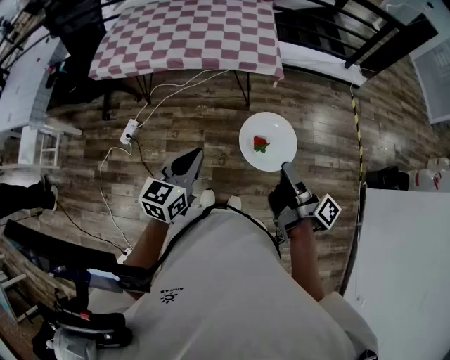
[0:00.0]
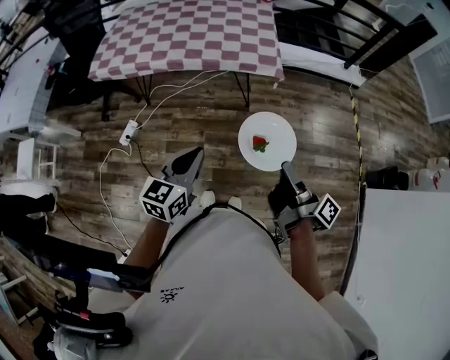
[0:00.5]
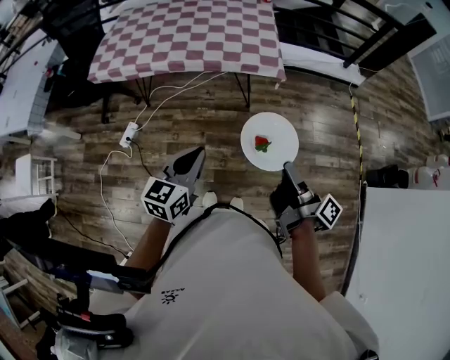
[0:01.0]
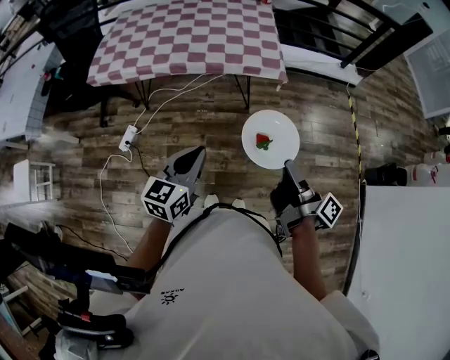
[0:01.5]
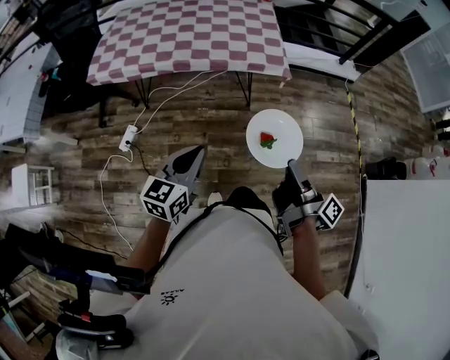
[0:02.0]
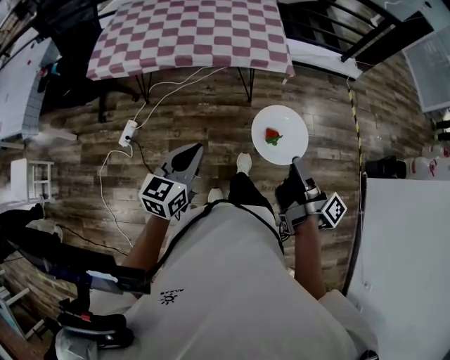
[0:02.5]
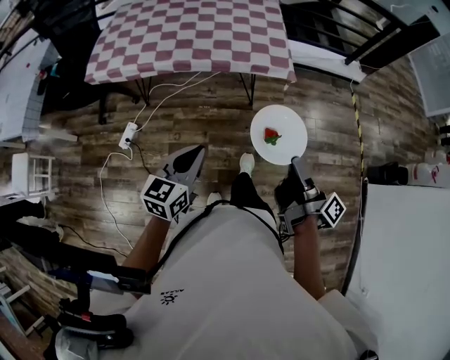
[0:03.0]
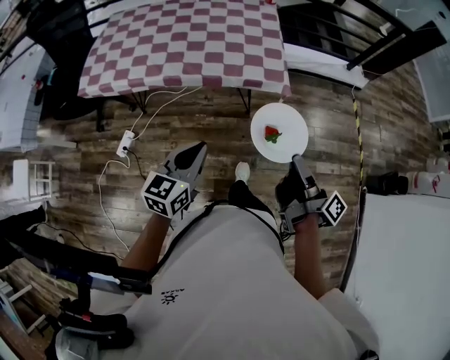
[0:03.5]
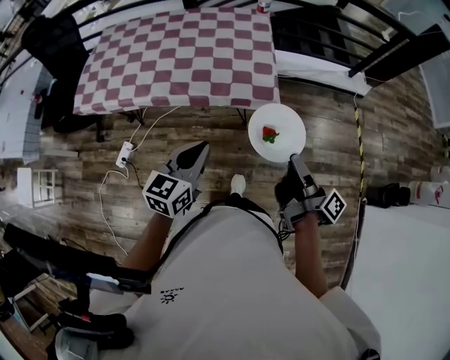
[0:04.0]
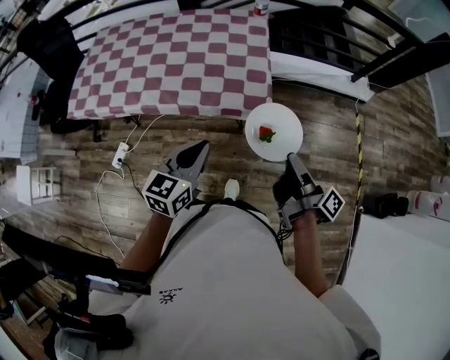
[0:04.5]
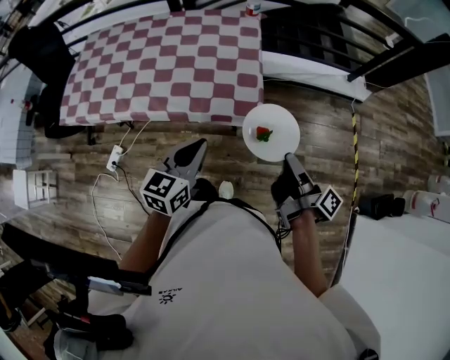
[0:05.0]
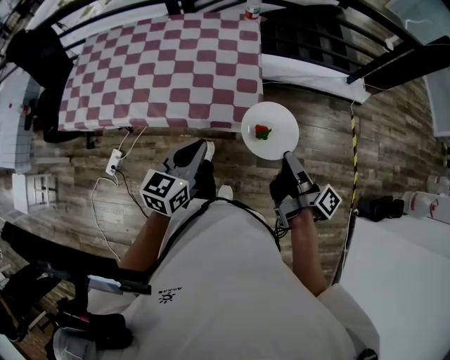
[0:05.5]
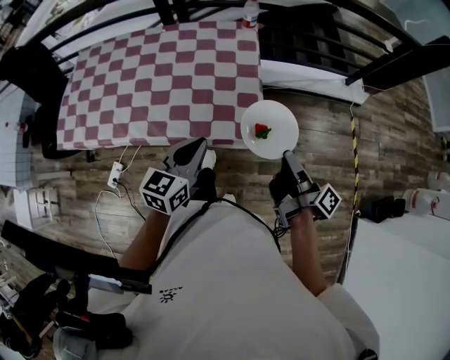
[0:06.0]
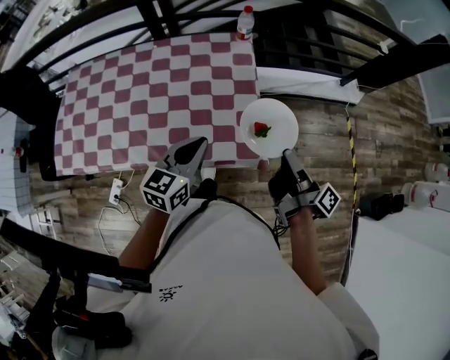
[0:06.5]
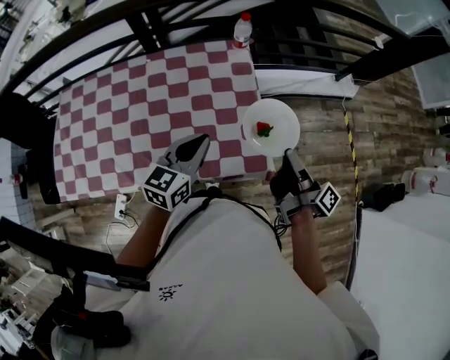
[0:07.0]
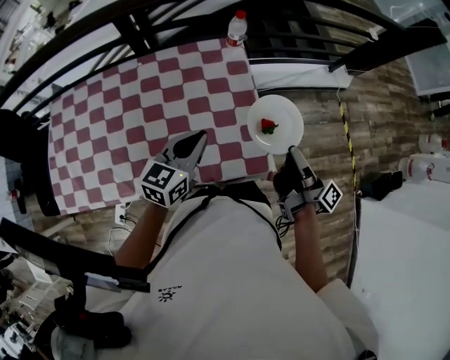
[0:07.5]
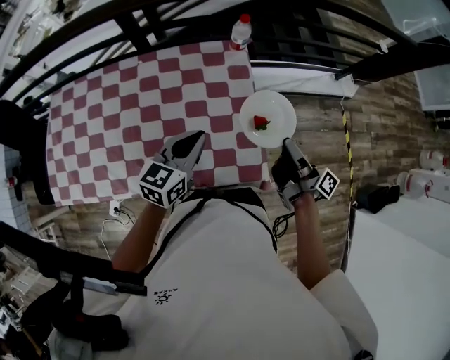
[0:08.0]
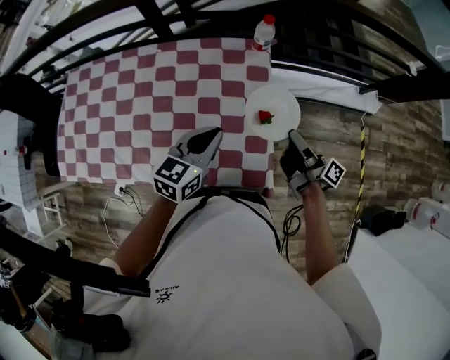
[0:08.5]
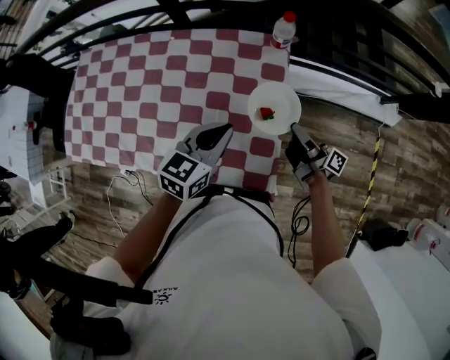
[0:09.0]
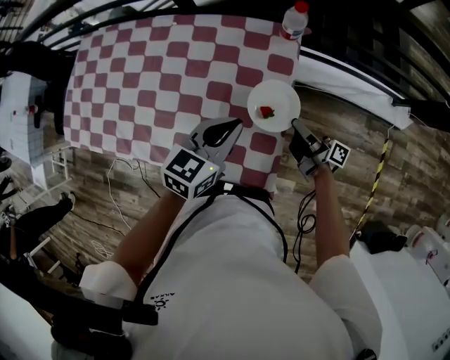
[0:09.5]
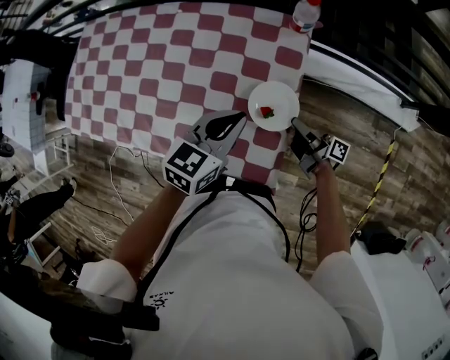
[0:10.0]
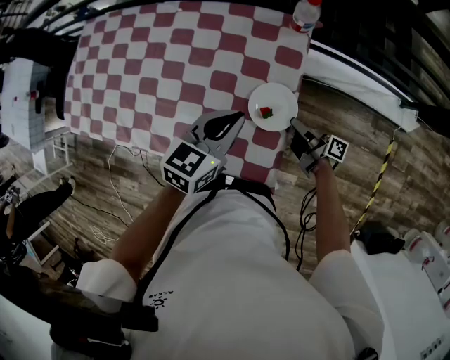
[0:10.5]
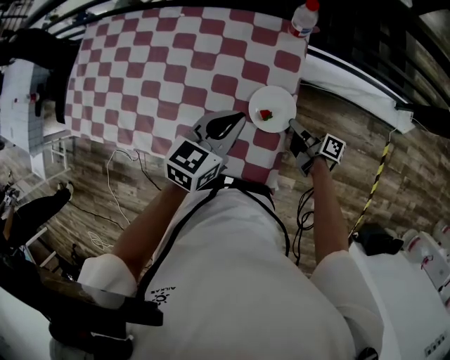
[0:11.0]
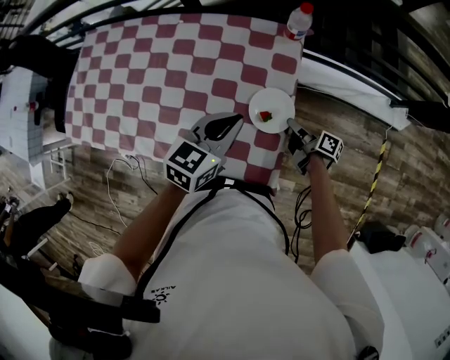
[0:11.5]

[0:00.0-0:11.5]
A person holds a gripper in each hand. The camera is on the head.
0:00.0 to 0:02.0: The left gripper ends up approximately 10 cm from where it was.
0:02.0 to 0:04.0: The left gripper shifts by approximately 30 cm.
0:04.0 to 0:06.0: The left gripper ends up approximately 25 cm from where it was.
0:06.0 to 0:07.5: The left gripper moves approximately 20 cm.
0:07.5 to 0:09.5: The left gripper moves some 15 cm.

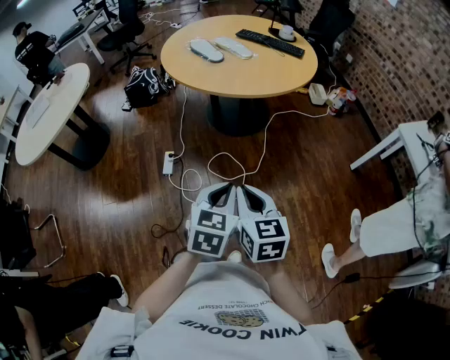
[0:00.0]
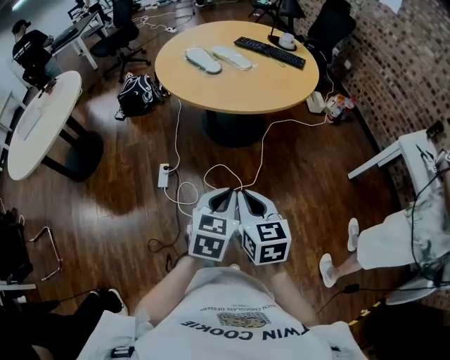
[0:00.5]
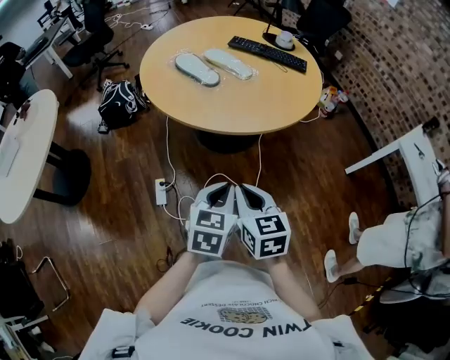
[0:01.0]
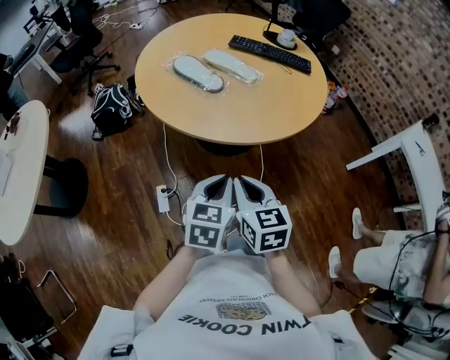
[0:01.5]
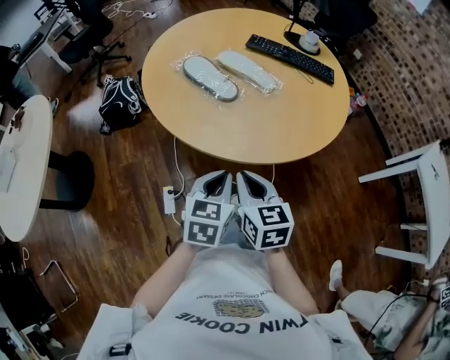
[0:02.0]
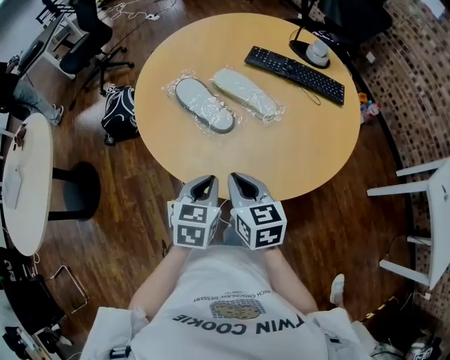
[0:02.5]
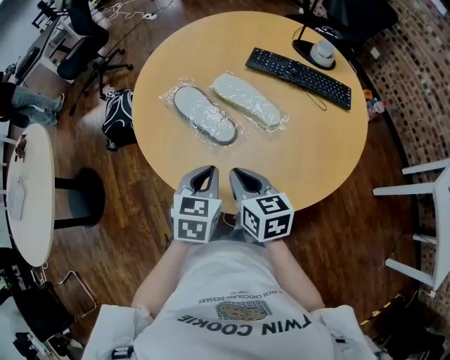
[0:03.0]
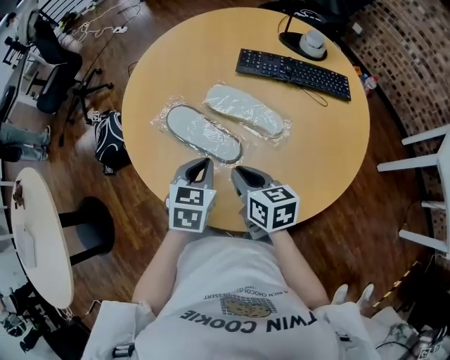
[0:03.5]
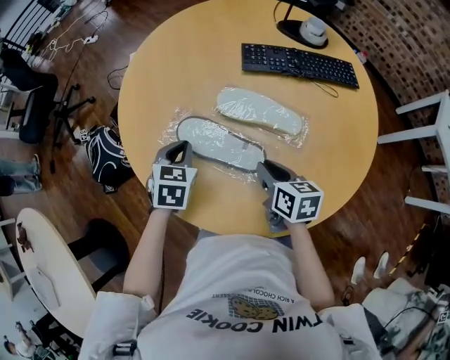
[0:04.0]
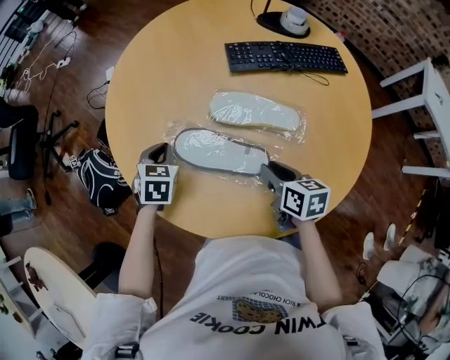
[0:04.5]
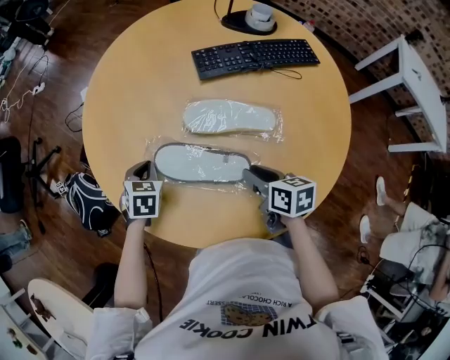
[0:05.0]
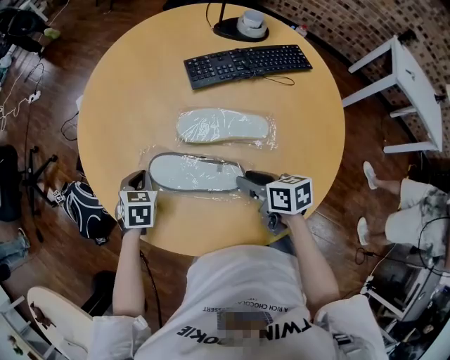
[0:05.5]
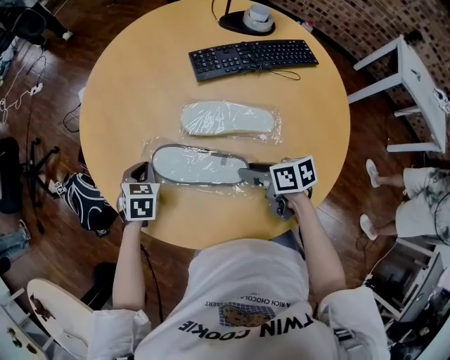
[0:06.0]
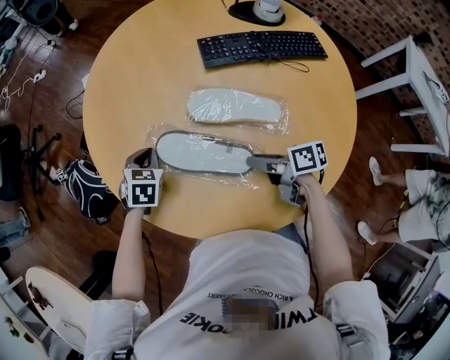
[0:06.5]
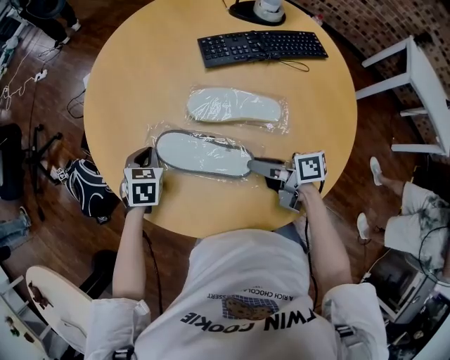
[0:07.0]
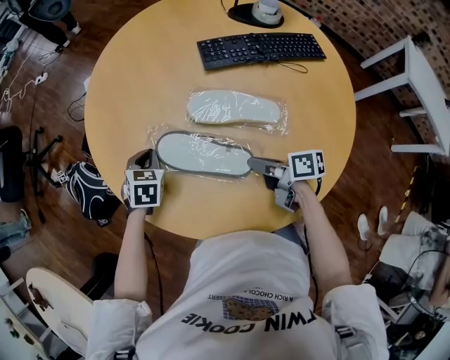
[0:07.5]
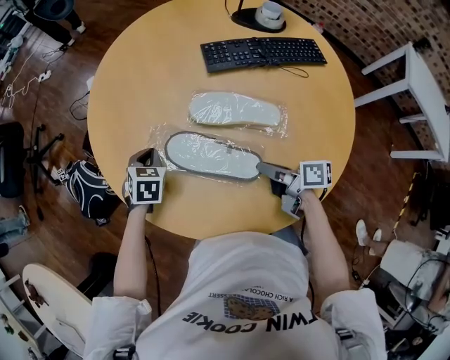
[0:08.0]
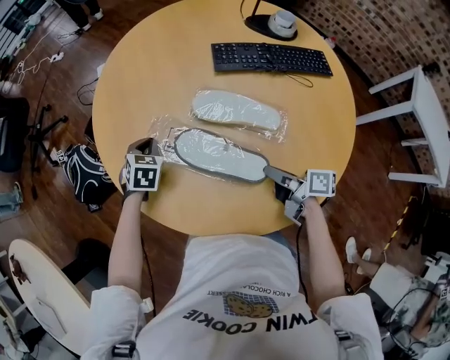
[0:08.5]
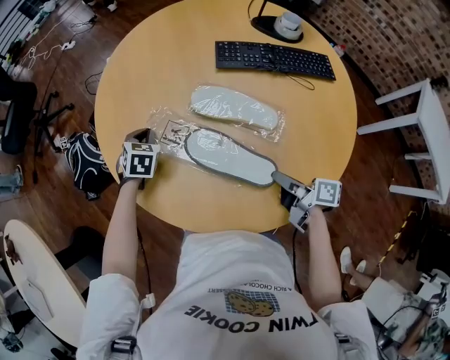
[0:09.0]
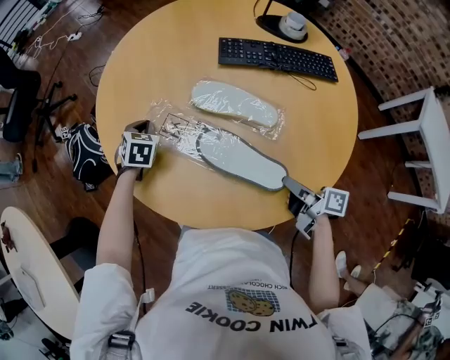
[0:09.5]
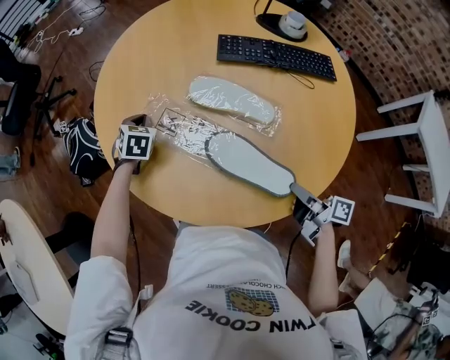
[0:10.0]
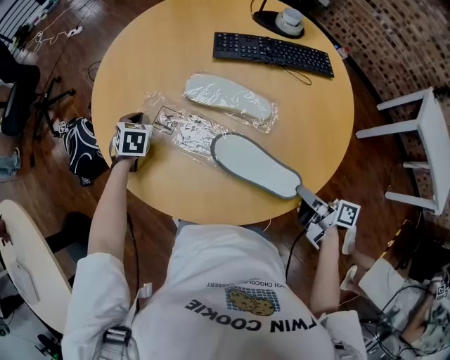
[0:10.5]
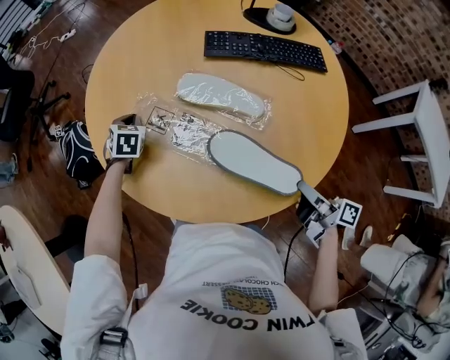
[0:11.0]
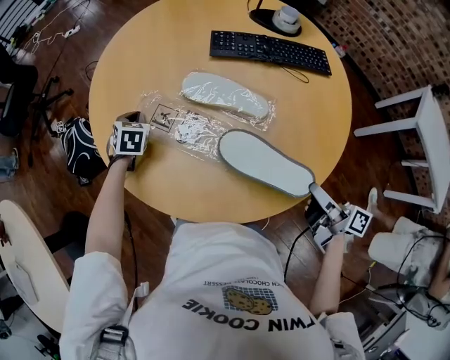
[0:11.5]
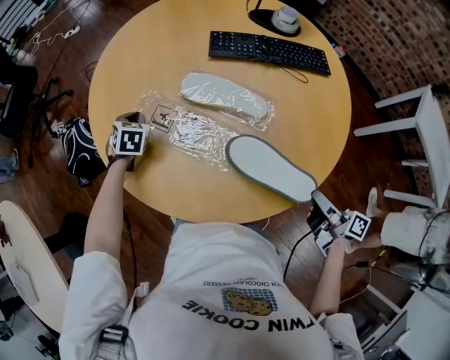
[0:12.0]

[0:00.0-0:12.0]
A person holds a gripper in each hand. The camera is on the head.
0:00.0 to 0:02.0: Both grippers are carried forward, about 50 cm.
0:02.0 to 0:04.0: The two grippers go roughly 40 cm forward. The right gripper turns by roughly 30 degrees, while the left gripper turns by some 30 degrees.
0:04.0 to 0:06.0: The left gripper moves downward and forward, about 10 cm.
0:06.0 to 0:08.0: The right gripper turns by some 20 degrees, and closes.
0:08.0 to 0:10.0: The right gripper heads backward and to the right, covering about 20 cm.
0:10.0 to 0:12.0: The right gripper heads backward and to the right, covering approximately 10 cm.

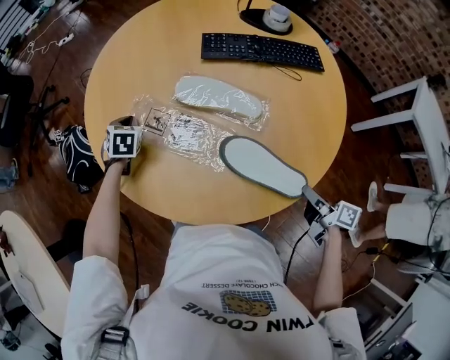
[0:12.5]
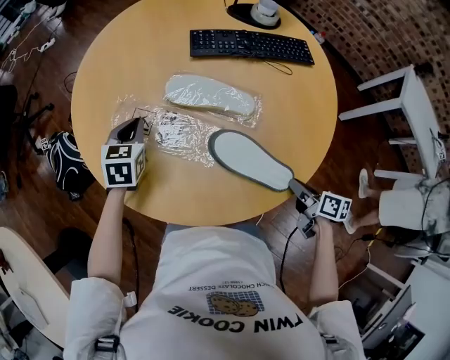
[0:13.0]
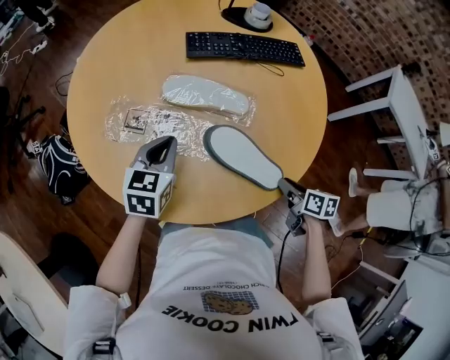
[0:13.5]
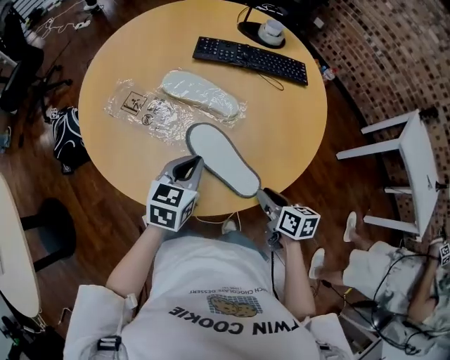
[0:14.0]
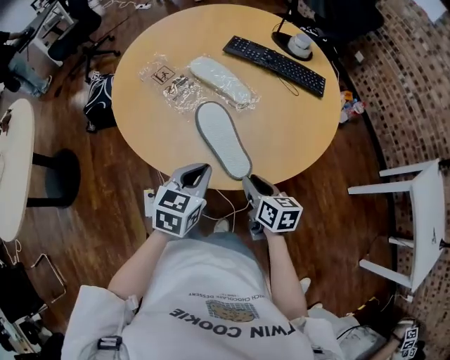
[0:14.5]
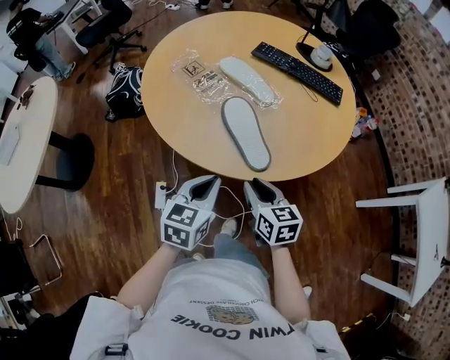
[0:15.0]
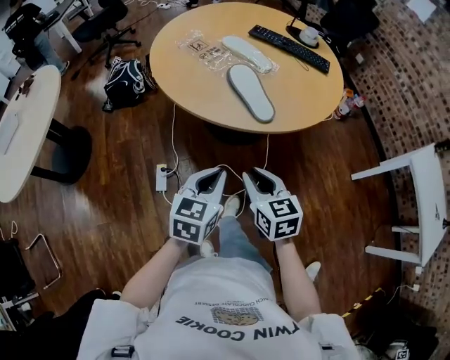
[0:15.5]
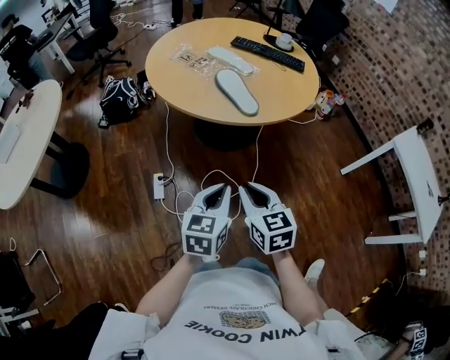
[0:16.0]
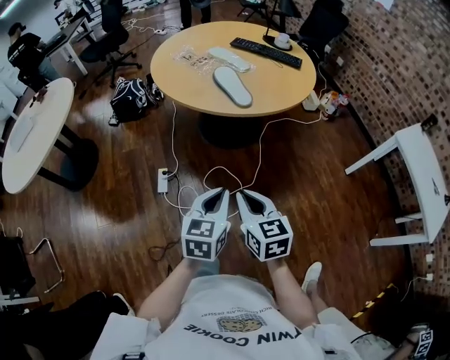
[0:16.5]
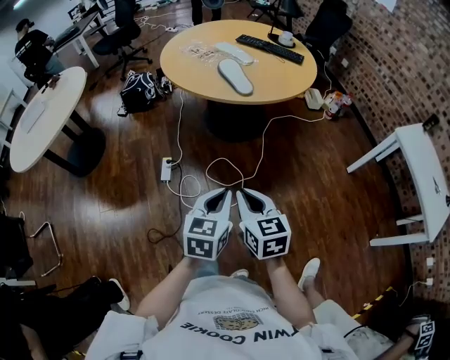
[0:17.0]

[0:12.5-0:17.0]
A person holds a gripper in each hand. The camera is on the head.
0:12.5 to 0:14.5: The left gripper shifts about 50 cm backward and to the right, and changes its angle by some 30 degrees, while the right gripper changes its angle by approximately 40 degrees.
0:14.5 to 0:17.0: The two grippers travel together, backward, about 50 cm. The right gripper turns by approximately 20 degrees.
